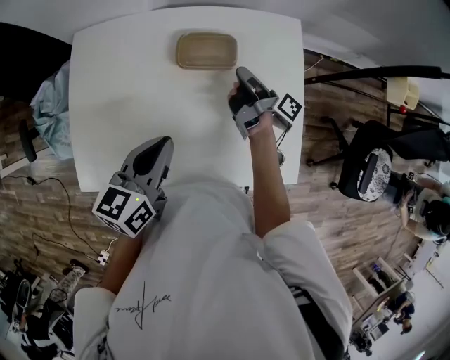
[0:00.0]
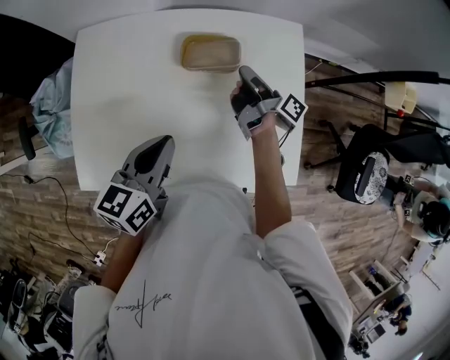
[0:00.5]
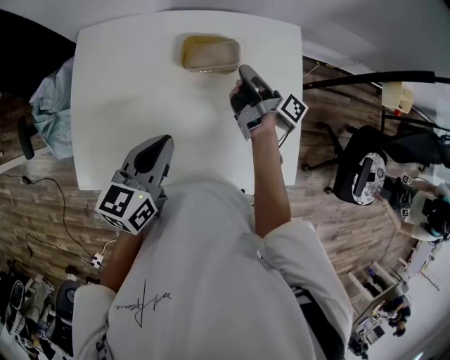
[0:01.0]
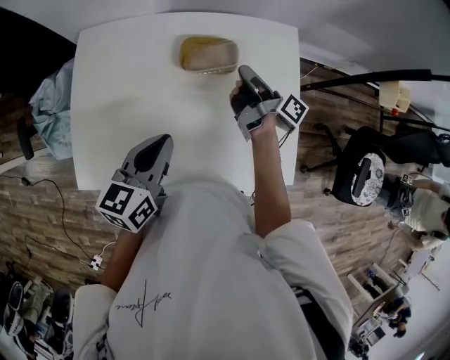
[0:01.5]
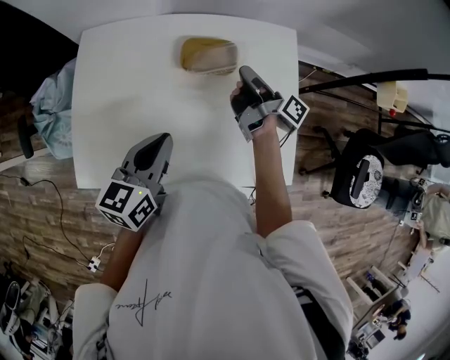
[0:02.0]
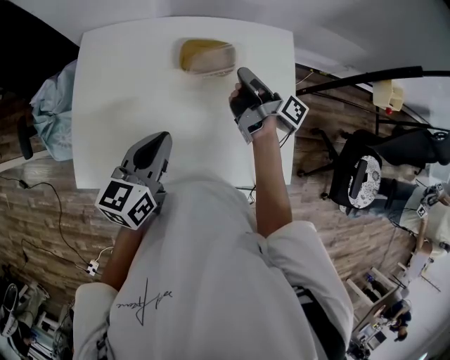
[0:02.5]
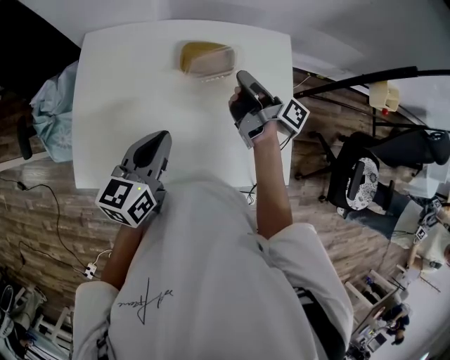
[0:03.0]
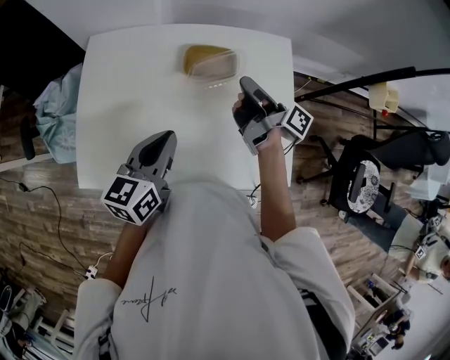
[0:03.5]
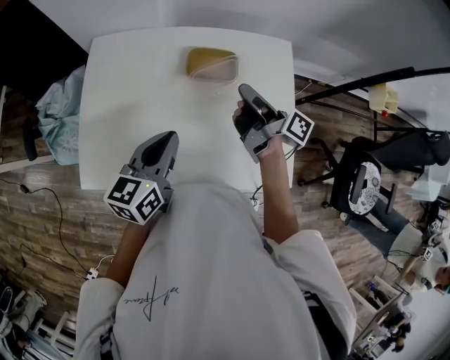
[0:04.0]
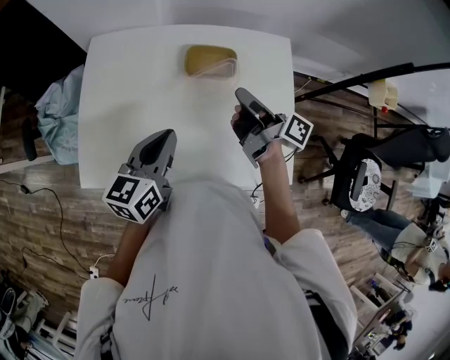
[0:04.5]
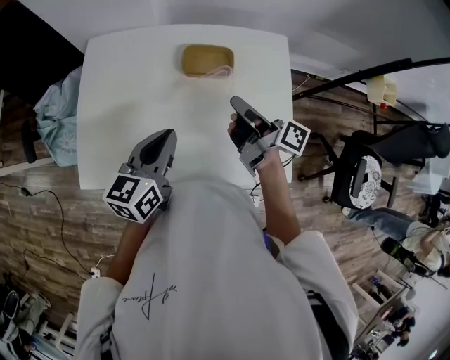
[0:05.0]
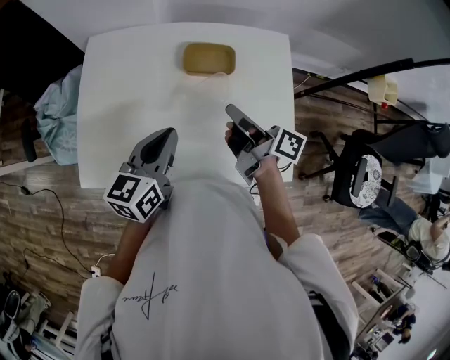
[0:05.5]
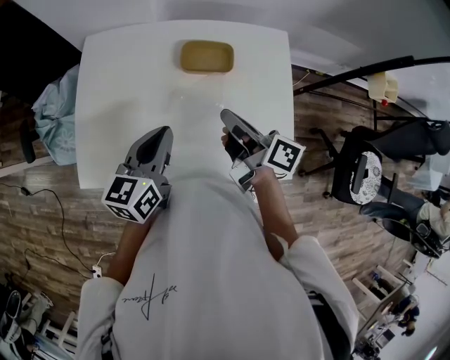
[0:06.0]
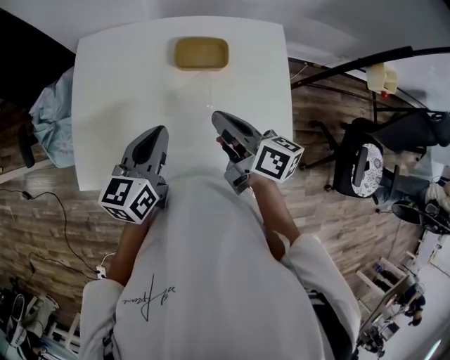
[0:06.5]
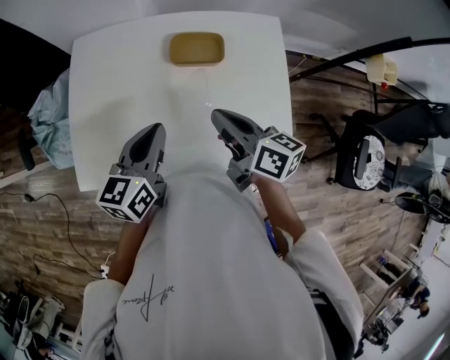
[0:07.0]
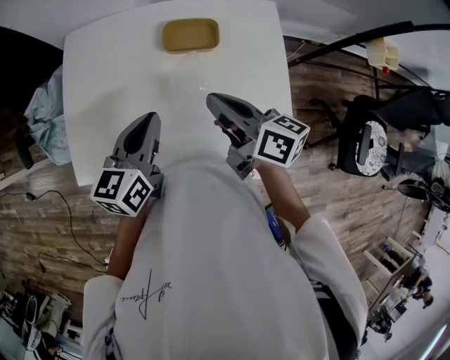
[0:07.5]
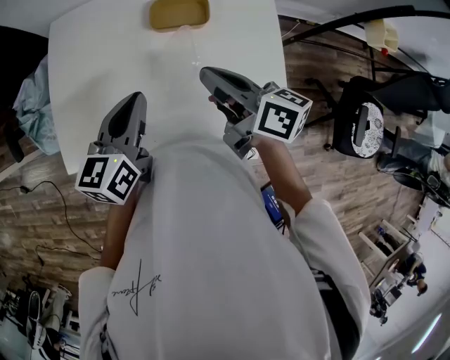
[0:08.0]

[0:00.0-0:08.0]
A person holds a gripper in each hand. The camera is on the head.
0:00.0 to 0:02.0: The right gripper travels upward by about 5 cm.
0:02.0 to 0:04.0: The right gripper travels upward and backward by approximately 10 cm.
0:04.0 to 0:06.0: The right gripper travels backward by about 10 cm.
0:06.0 to 0:08.0: The grippers stay close to where they were, moving slightly.

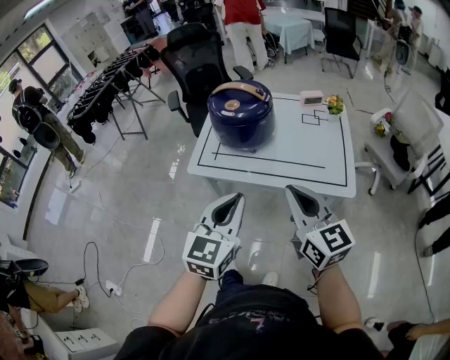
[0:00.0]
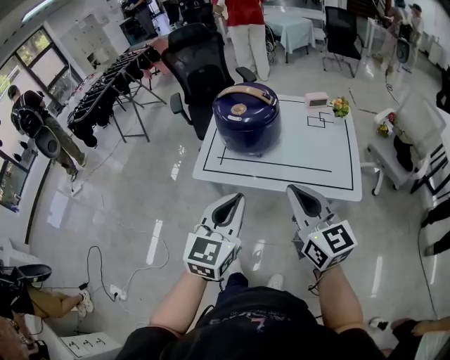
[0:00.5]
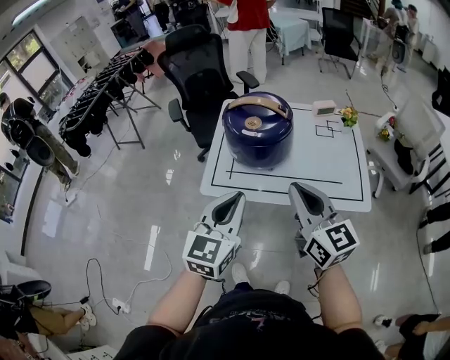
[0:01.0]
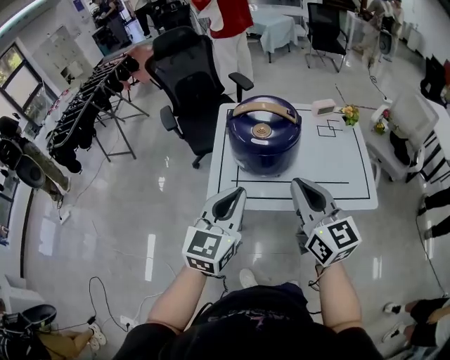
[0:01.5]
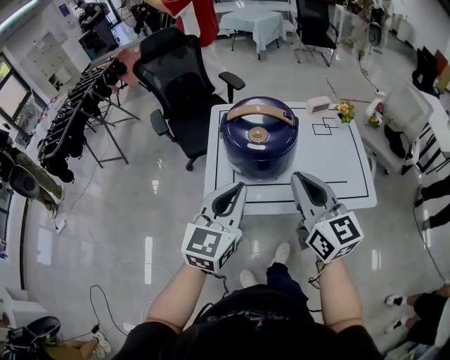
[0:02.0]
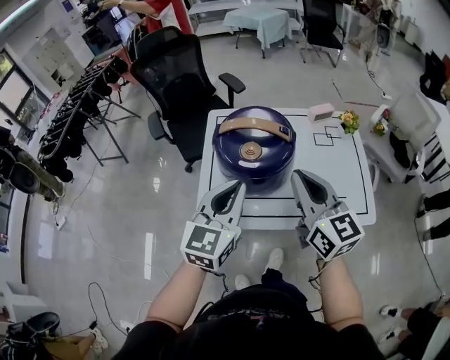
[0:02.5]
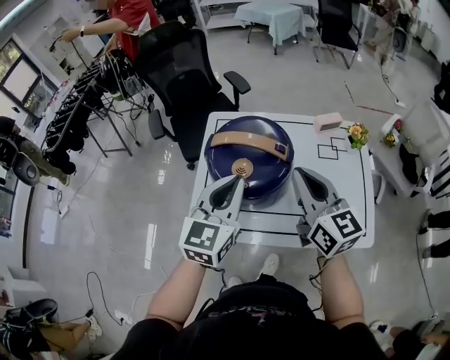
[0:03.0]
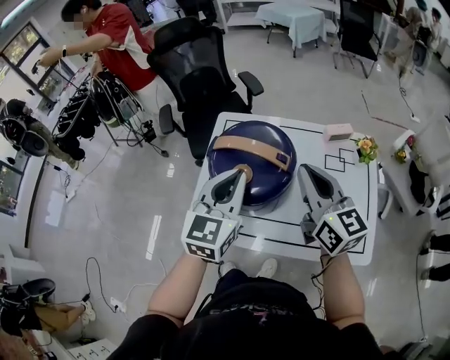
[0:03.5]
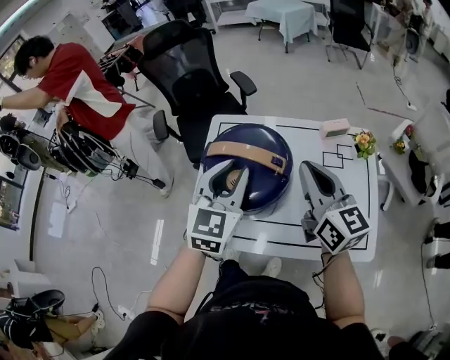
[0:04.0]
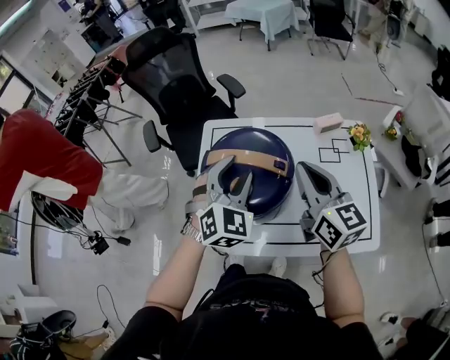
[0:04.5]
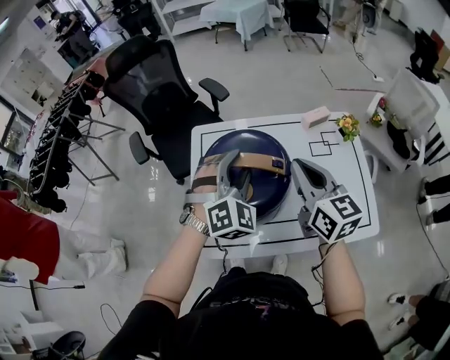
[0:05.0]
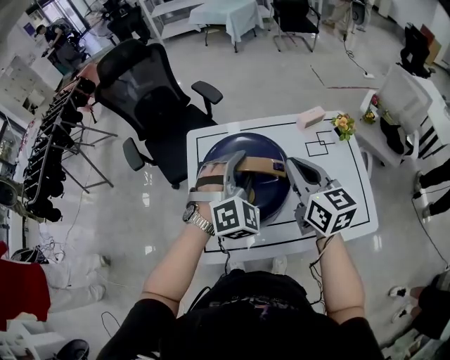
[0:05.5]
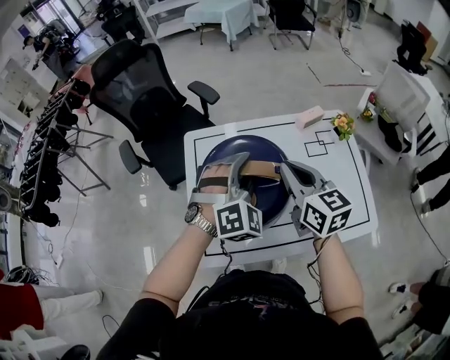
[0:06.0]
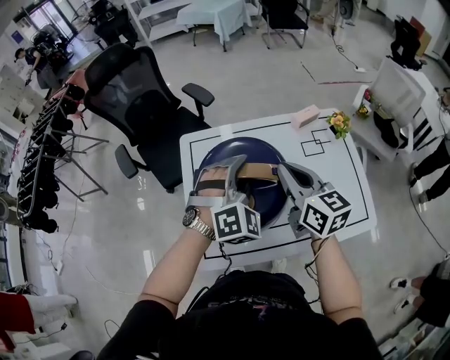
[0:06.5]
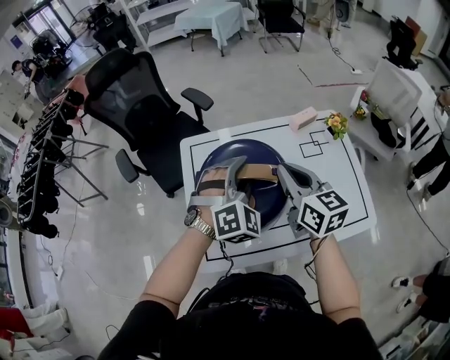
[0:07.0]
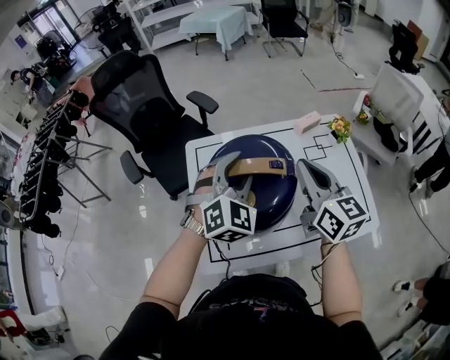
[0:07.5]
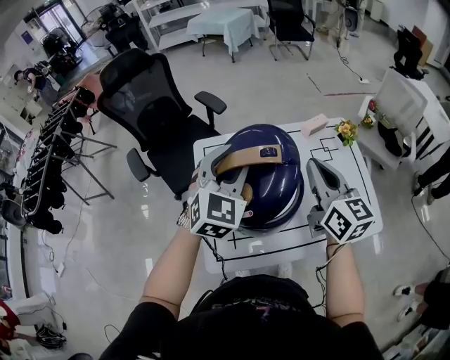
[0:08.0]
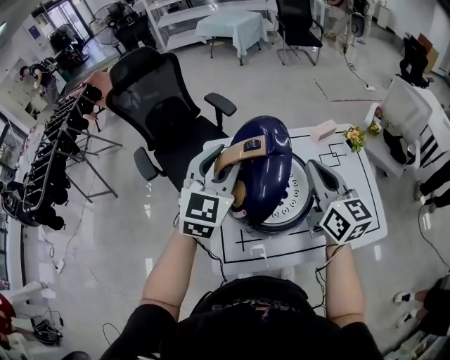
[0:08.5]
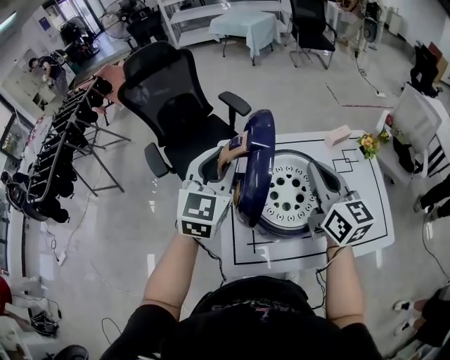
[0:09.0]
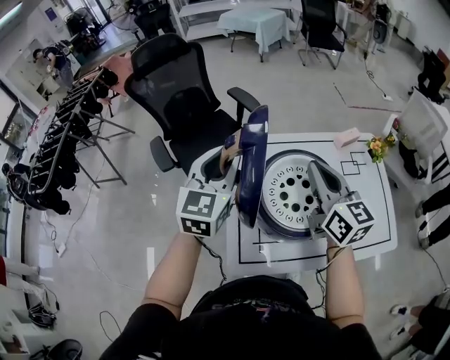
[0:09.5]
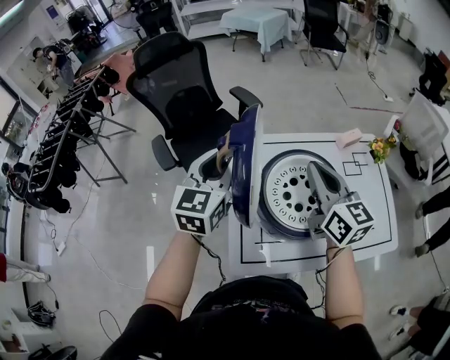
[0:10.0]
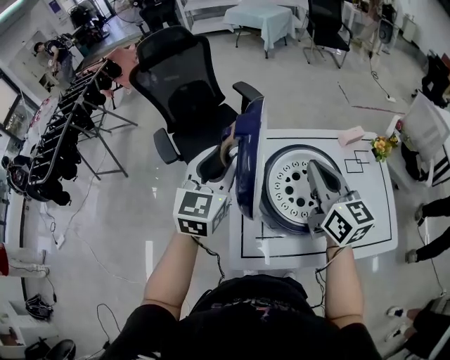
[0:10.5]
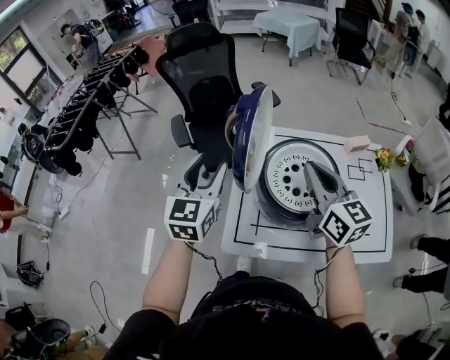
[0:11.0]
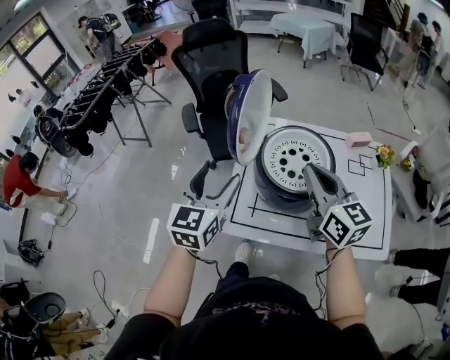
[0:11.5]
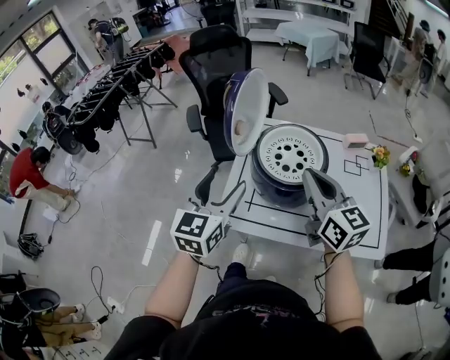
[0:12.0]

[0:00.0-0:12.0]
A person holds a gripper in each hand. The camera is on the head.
0:00.0 to 0:02.0: The two grippers go roughly 25 cm forward and to the left.
0:02.0 to 0:04.0: The grippers both shift forward and to the right by about 25 cm.
0:04.0 to 0:06.0: The right gripper heads to the left, covering roughly 5 cm; the left gripper goes roughly 10 cm forward and downward, and twists roughly 50 degrees clockwise, seen from behind.
0:06.0 to 0:08.0: The left gripper is displaced upward and to the left by some 10 cm, and turns by about 30 degrees, while the right gripper is displaced upward by about 5 cm.
0:08.0 to 0:10.0: Both grippers move to the left, about 15 cm. The left gripper turns by about 30 degrees.
0:10.0 to 0:12.0: The right gripper is displaced backward by roughly 15 cm. The left gripper travels backward by some 25 cm, and opens up.

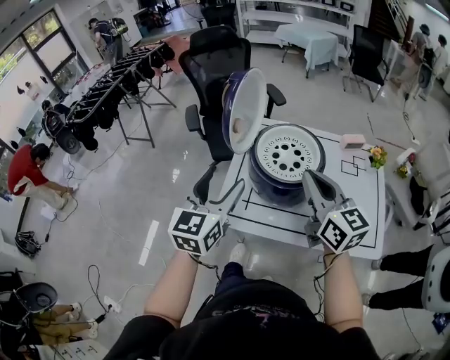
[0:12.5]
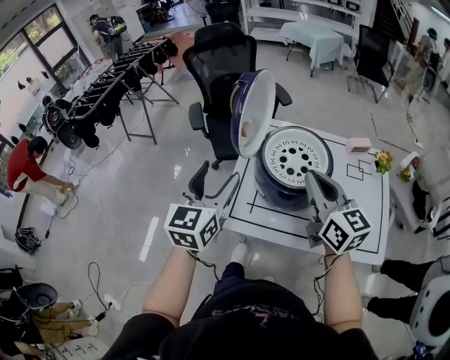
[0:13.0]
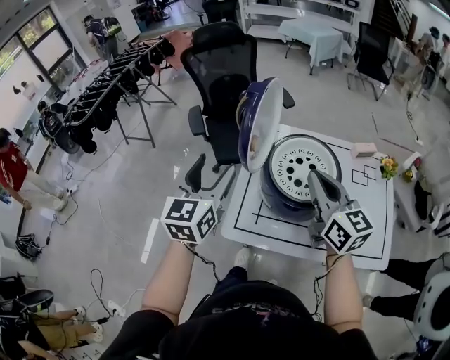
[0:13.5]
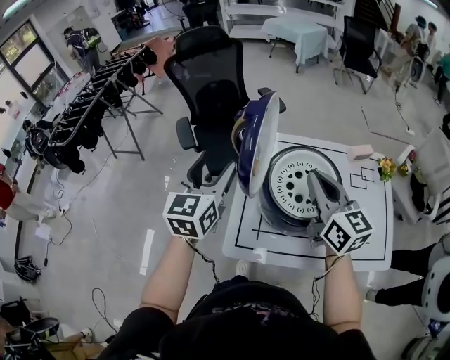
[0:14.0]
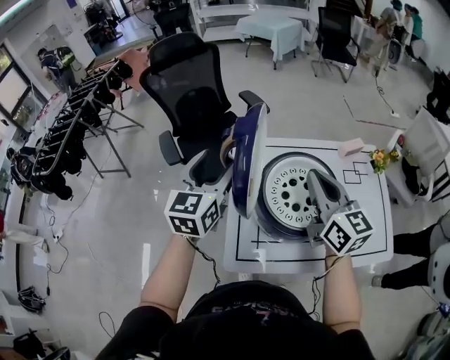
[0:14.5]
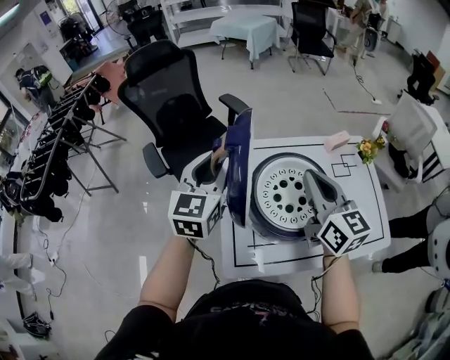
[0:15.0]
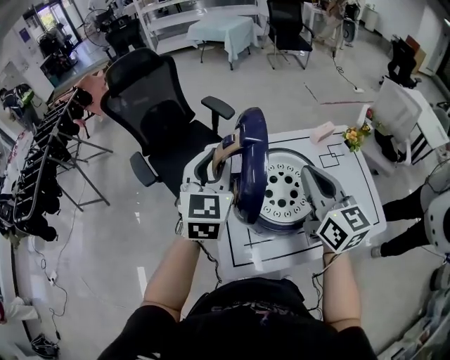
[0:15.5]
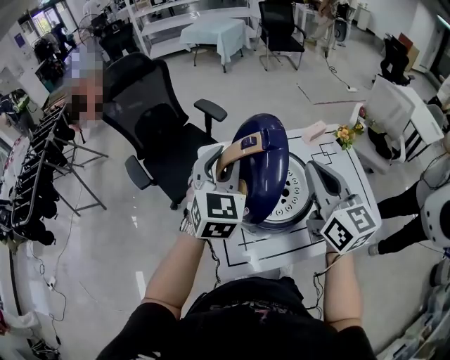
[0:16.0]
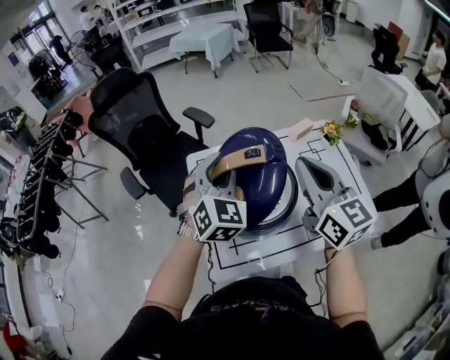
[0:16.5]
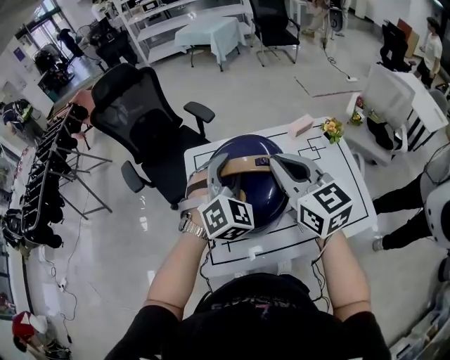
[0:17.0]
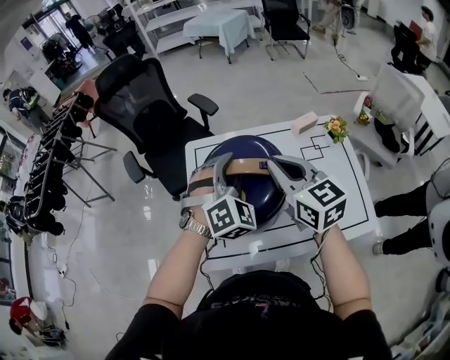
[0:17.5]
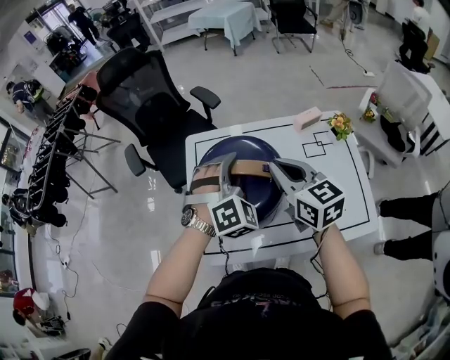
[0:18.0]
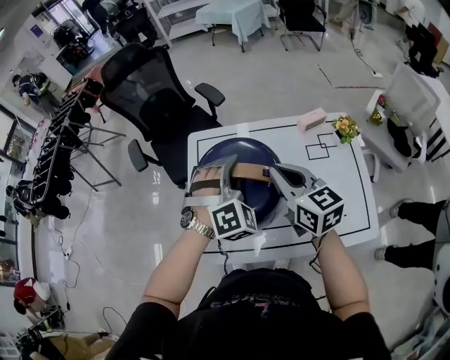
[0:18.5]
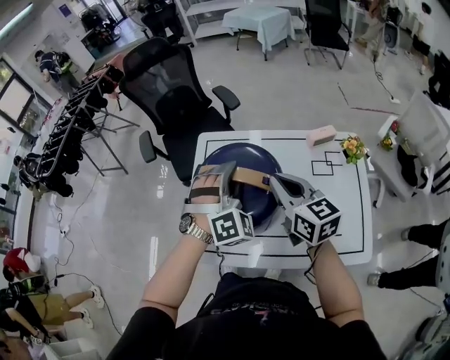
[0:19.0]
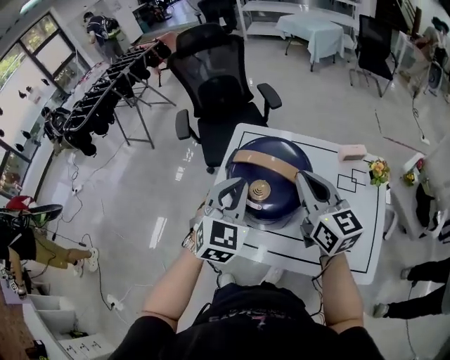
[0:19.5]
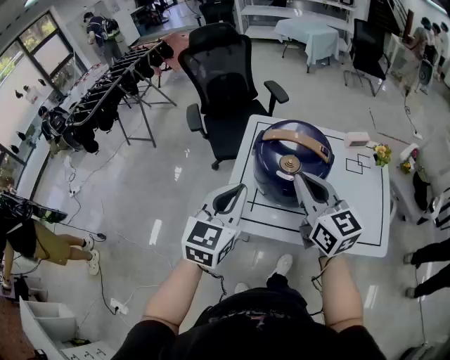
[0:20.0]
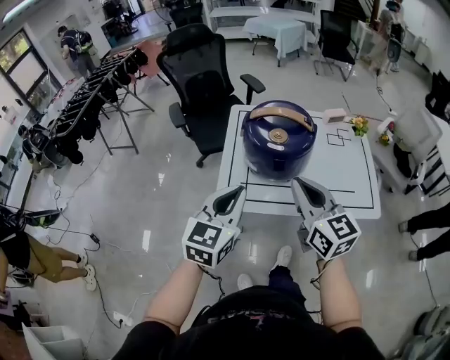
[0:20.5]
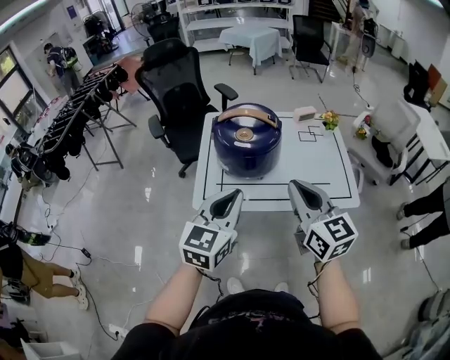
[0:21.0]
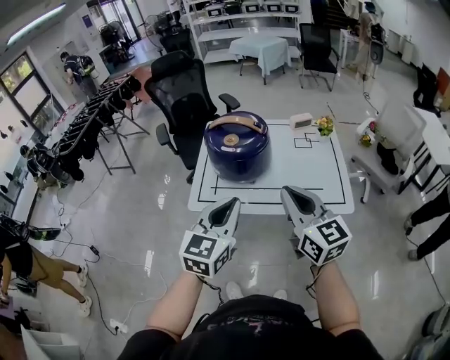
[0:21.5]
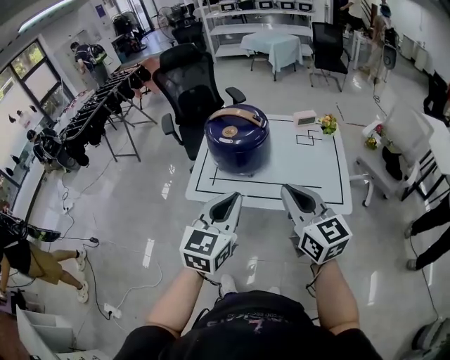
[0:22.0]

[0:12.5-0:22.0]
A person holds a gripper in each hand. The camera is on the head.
0:12.5 to 0:14.5: The right gripper goes roughly 15 cm forward. The left gripper travels forward by approximately 25 cm.
0:14.5 to 0:16.5: The left gripper travels to the right by roughly 15 cm, rotates around the line of its fingers by some 40 degrees, clockwise from behind, and closes its fingers; the right gripper heads to the right and upward, covering roughly 10 cm.
0:16.5 to 0:18.0: The left gripper goes about 10 cm to the right and downward, and swivels some 30 degrees. The right gripper heads downward, covering some 10 cm, and rotates some 20 degrees.
0:18.0 to 0:20.0: The left gripper goes some 25 cm to the left and backward, twists about 60 degrees counterclockwise, seen from behind, and closes up. The right gripper is displaced to the left and backward by about 15 cm.
0:20.0 to 0:22.0: Both grippers travel together backward and to the right, approximately 25 cm.
